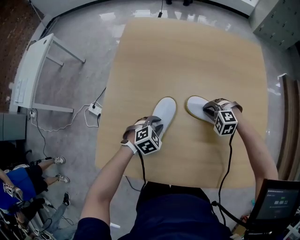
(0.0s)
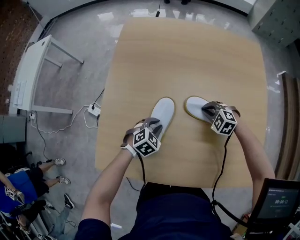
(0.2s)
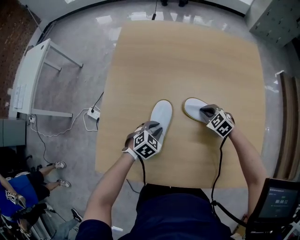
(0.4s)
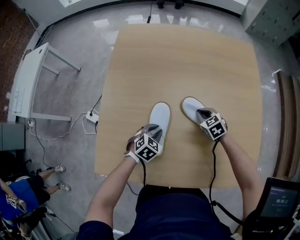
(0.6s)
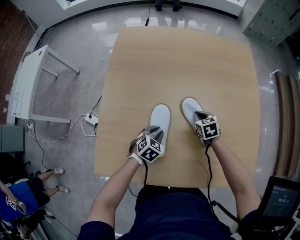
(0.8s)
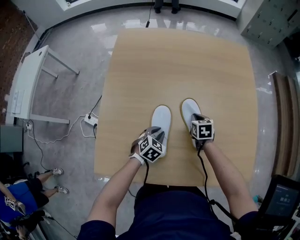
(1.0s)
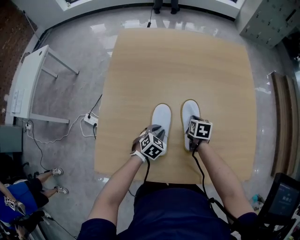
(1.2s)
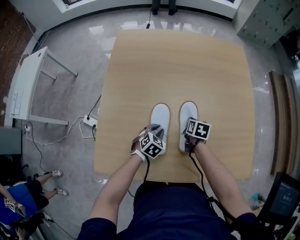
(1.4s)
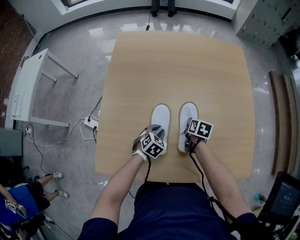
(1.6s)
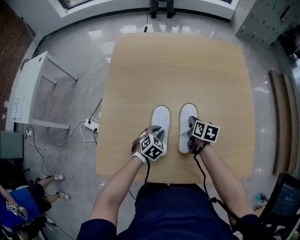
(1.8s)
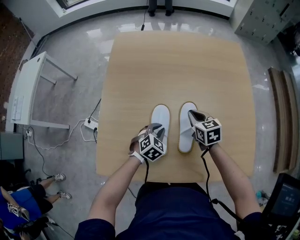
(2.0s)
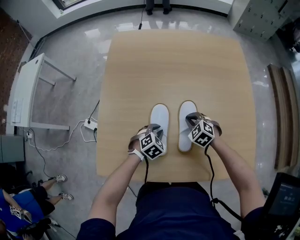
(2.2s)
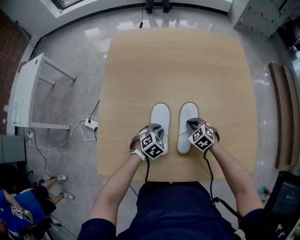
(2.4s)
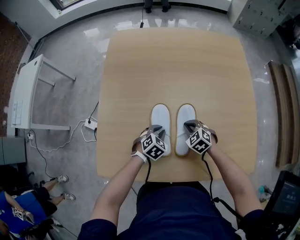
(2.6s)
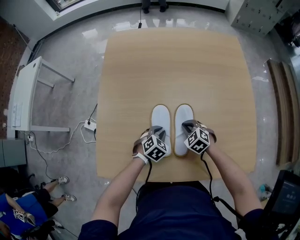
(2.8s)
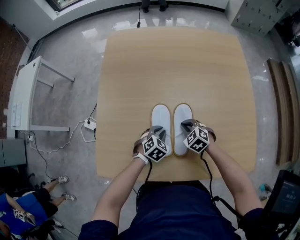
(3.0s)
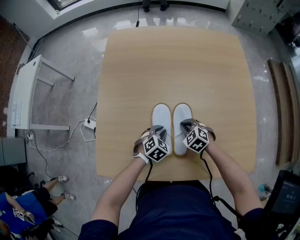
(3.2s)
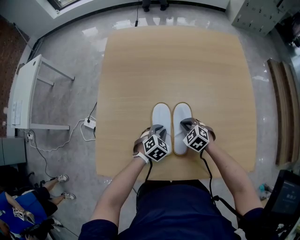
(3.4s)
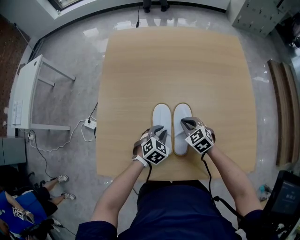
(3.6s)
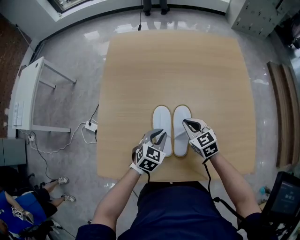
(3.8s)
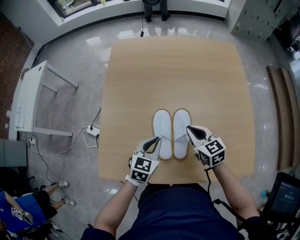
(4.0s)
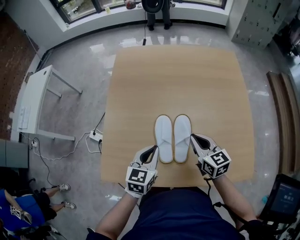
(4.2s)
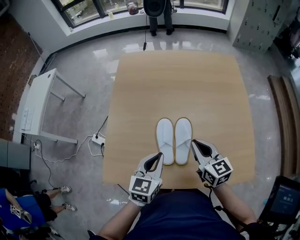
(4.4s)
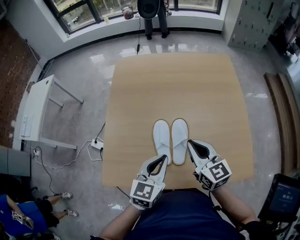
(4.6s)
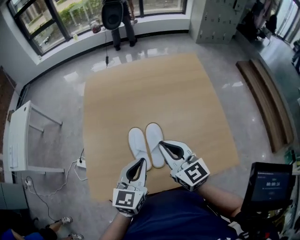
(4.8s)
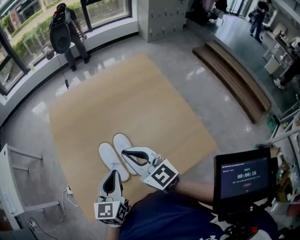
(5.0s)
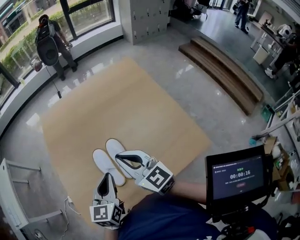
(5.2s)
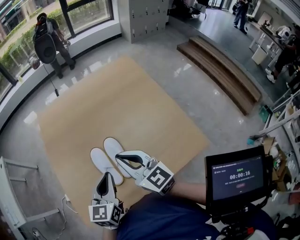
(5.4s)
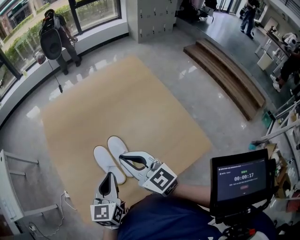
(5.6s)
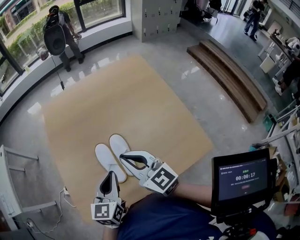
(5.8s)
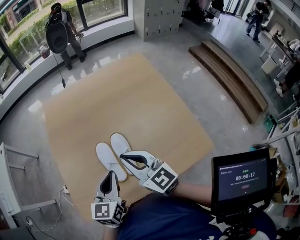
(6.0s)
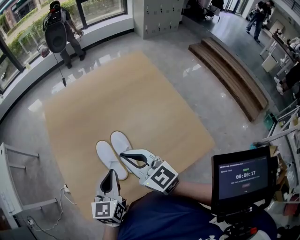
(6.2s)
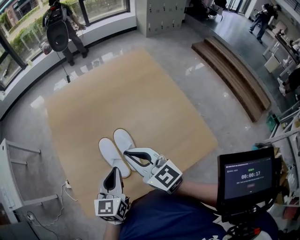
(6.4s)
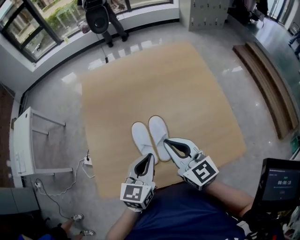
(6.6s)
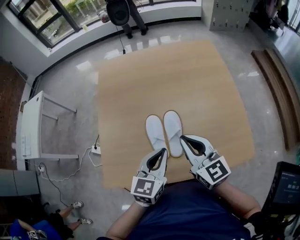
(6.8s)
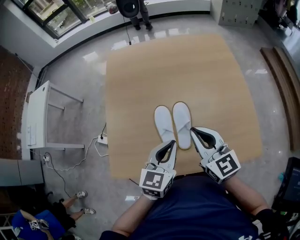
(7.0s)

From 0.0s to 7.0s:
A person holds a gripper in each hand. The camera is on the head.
From 0.0s to 1.4s: The right gripper rotates around the line of its fingers by roughly 110 degrees, clockwise from behind.
From 1.4s to 2.8s: The right gripper moves to the left, roughly 5 cm, travels upward and back again, some 10 cm each way, and rolls counterclockwise, seen from behind, by approximately 70 degrees.
From 2.8s to 4.2s: Both grippers move upward, some 20 cm. The left gripper changes its angle by some 40 degrees. Meanwhile the right gripper tips its fingers upward by about 30 degrees.
From 4.2s to 5.6s: The right gripper moves upward, roughly 15 cm. The left gripper goes approximately 10 cm upward and to the right.
From 5.6s to 7.0s: The grippers make only small movements.

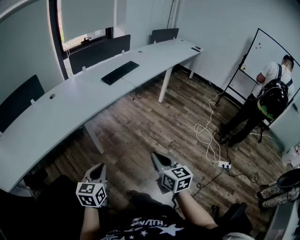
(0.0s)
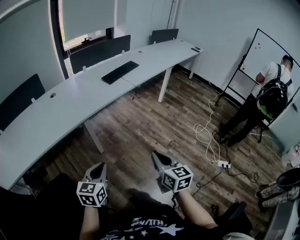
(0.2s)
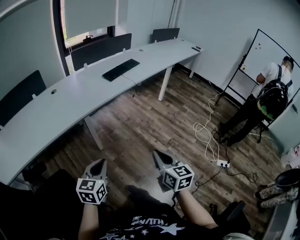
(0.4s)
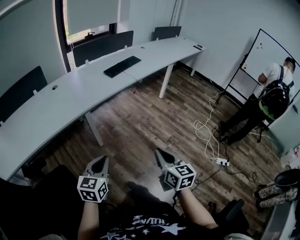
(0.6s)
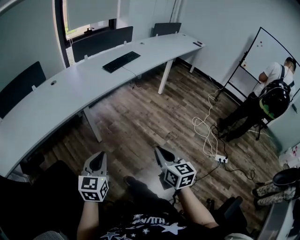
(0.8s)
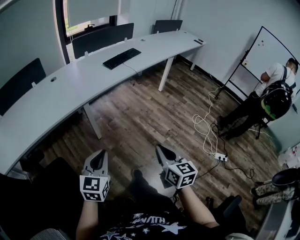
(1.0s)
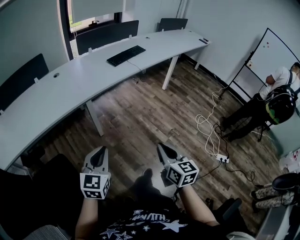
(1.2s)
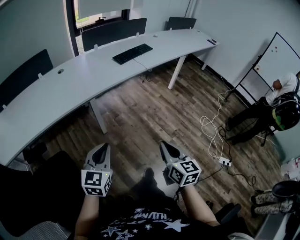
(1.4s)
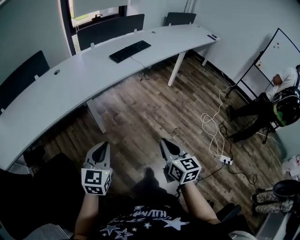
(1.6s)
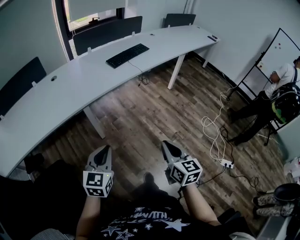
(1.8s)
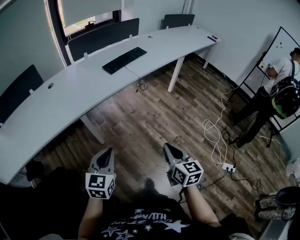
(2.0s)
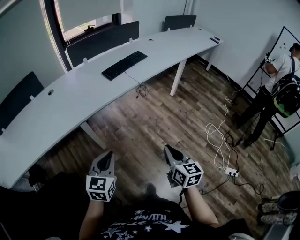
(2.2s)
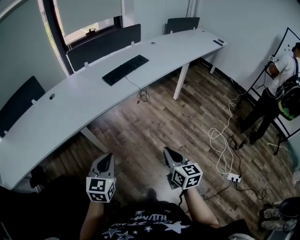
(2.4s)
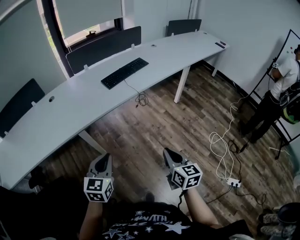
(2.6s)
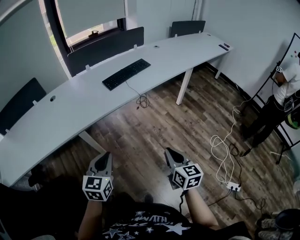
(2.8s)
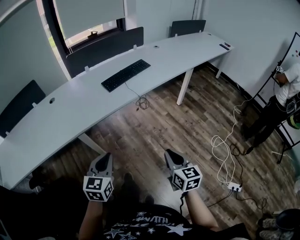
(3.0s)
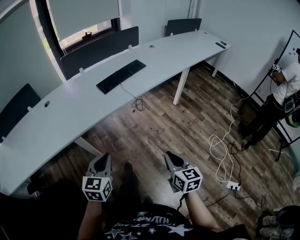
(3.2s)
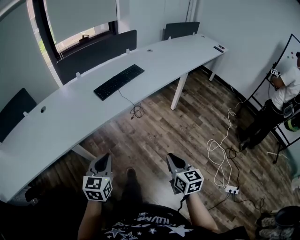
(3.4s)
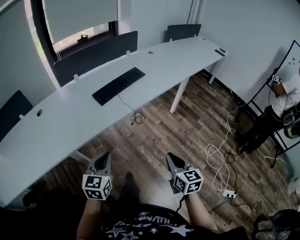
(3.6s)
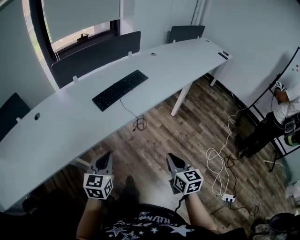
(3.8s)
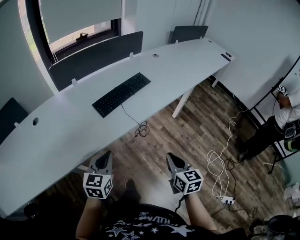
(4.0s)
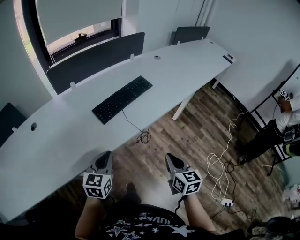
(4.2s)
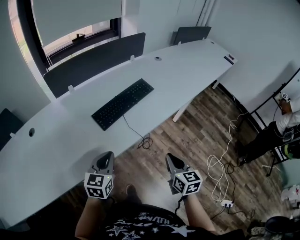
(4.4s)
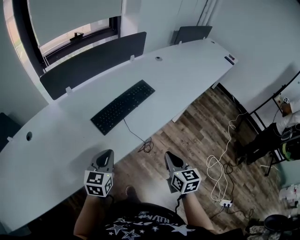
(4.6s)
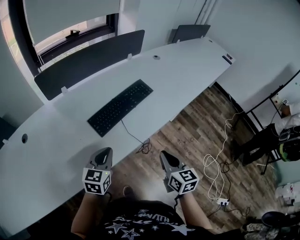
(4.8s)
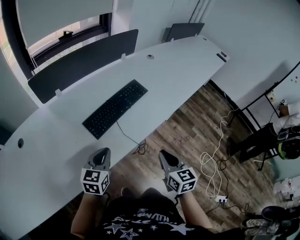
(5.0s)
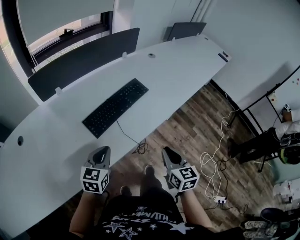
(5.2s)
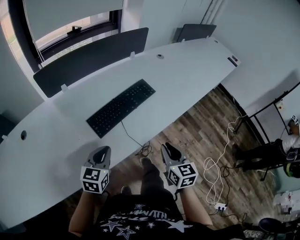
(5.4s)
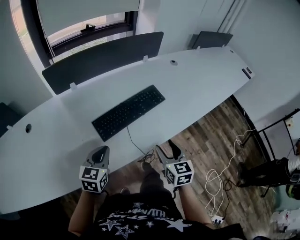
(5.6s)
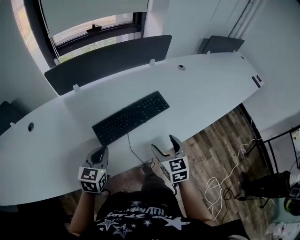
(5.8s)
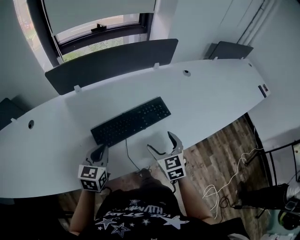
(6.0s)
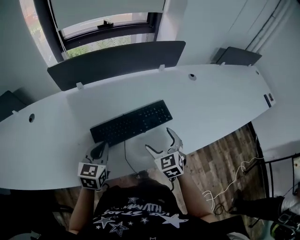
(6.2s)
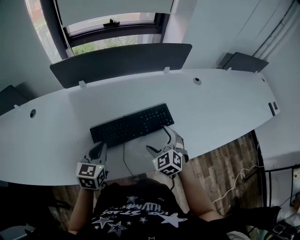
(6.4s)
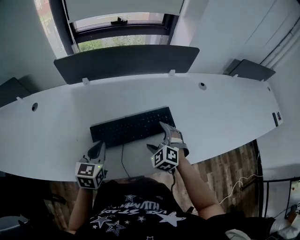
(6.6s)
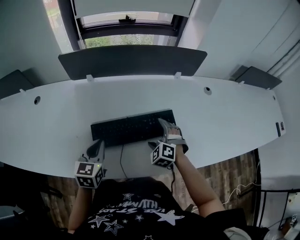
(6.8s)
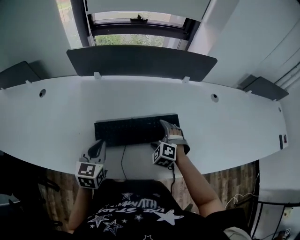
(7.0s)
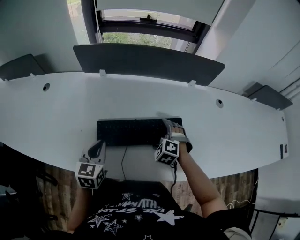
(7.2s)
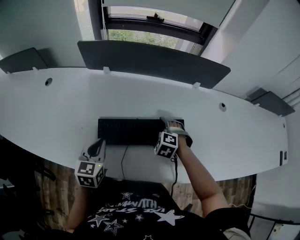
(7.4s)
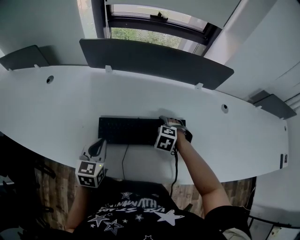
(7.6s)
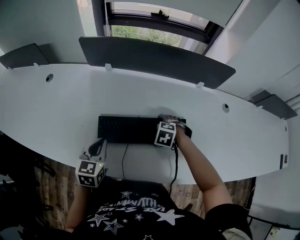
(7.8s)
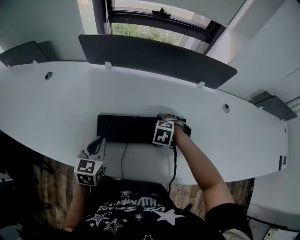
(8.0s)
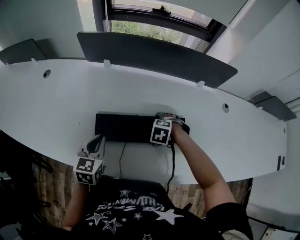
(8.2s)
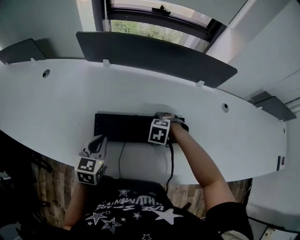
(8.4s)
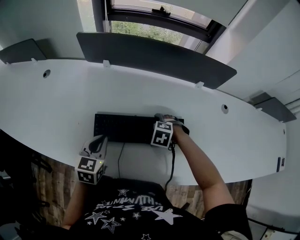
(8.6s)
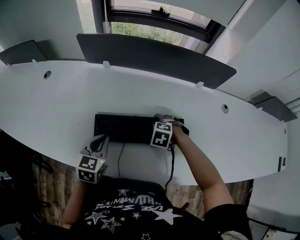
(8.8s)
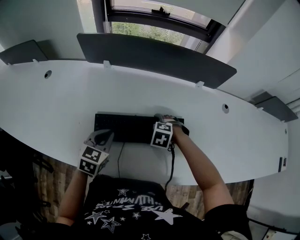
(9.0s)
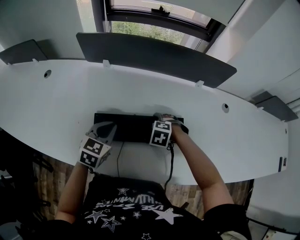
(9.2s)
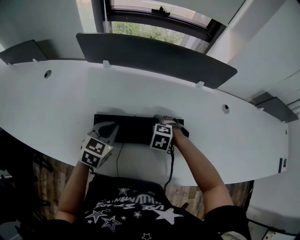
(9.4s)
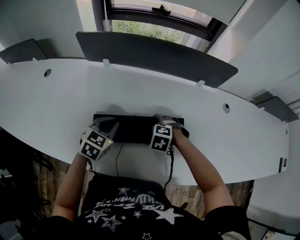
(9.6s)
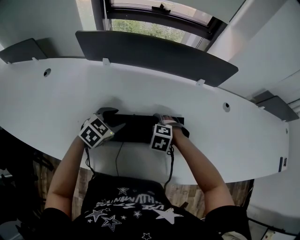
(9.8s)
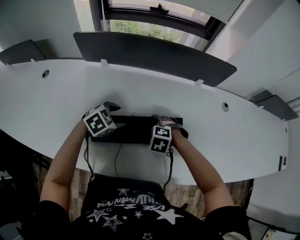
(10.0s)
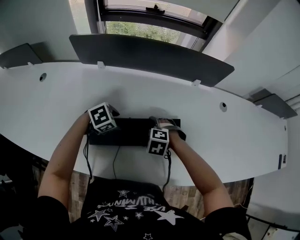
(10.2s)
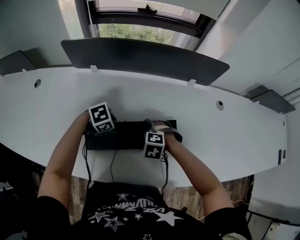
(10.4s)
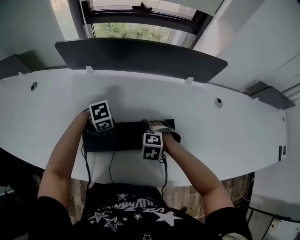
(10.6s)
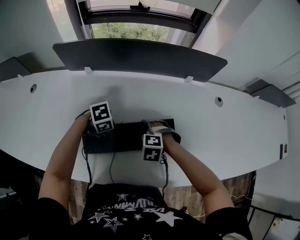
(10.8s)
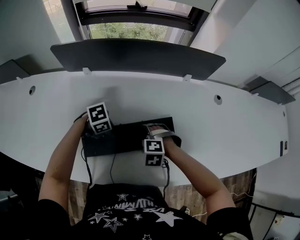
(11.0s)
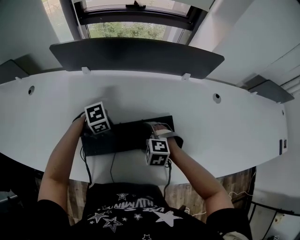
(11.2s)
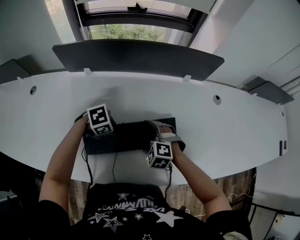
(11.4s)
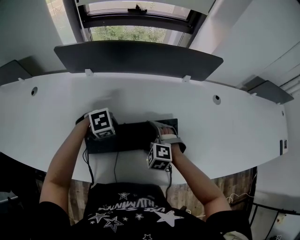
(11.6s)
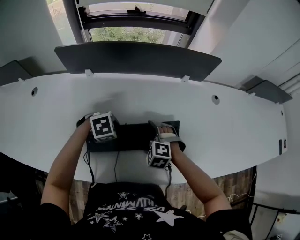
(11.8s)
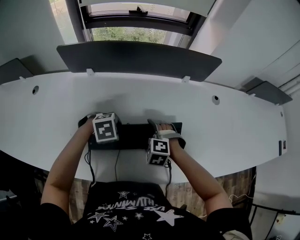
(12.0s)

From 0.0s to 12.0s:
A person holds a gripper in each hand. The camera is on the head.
From 0.0s to 1.6s: The right gripper moves roughly 5 cm backward and comes back.
From 1.6s to 3.0s: The two grippers go some 25 cm forward and to the right.
From 3.0s to 4.4s: Both grippers move forward, about 30 cm.
From 4.4s to 6.0s: The left gripper travels forward by some 20 cm, while the right gripper travels forward by some 30 cm, changes its angle by roughly 40 degrees, and opens up.
From 6.0s to 7.6s: The right gripper changes place by approximately 20 cm, and points its fingers approximately 50 degrees further downward. The left gripper changes its angle by roughly 30 degrees.
From 7.6s to 9.0s: The left gripper changes place by approximately 5 cm.
From 9.0s to 10.4s: The left gripper travels downward by approximately 10 cm, changes its angle by approximately 60 degrees, and opens its fingers.
From 10.4s to 12.0s: The left gripper travels upward by approximately 5 cm, and changes its angle by roughly 20 degrees.

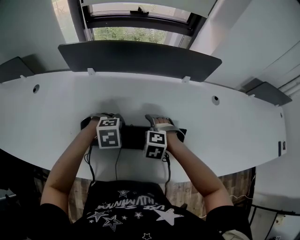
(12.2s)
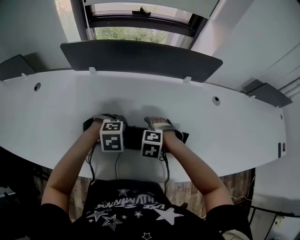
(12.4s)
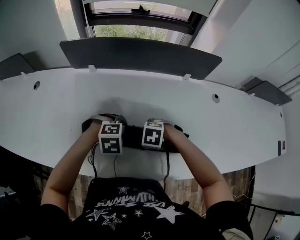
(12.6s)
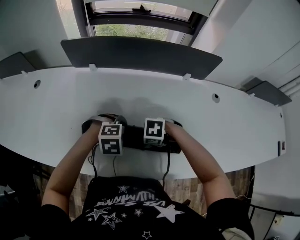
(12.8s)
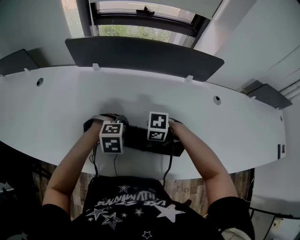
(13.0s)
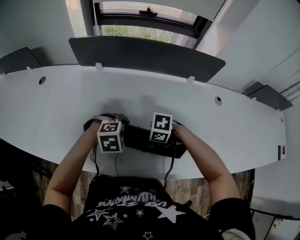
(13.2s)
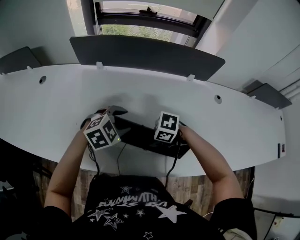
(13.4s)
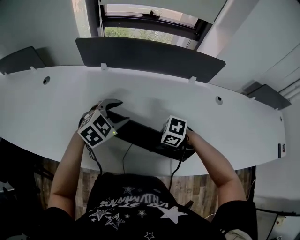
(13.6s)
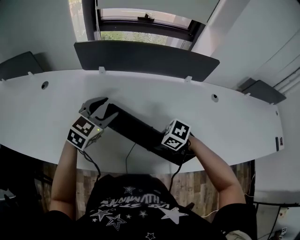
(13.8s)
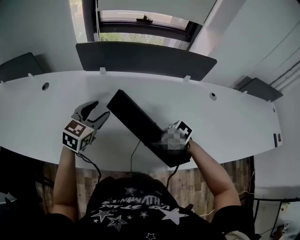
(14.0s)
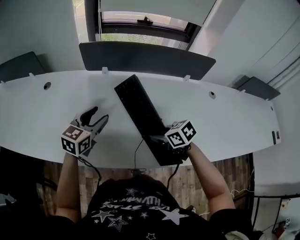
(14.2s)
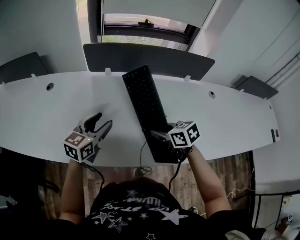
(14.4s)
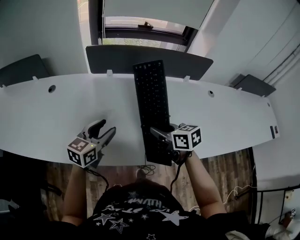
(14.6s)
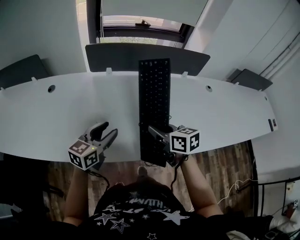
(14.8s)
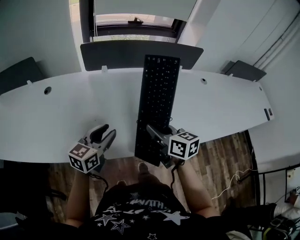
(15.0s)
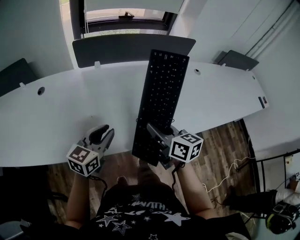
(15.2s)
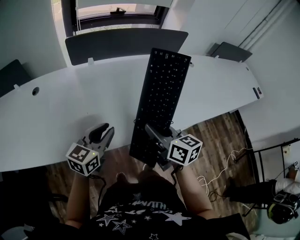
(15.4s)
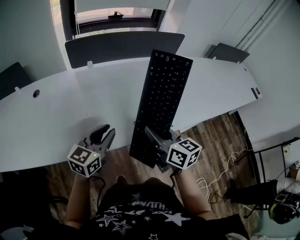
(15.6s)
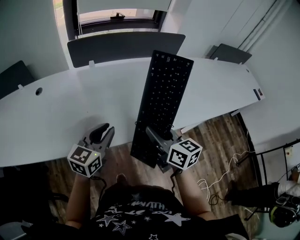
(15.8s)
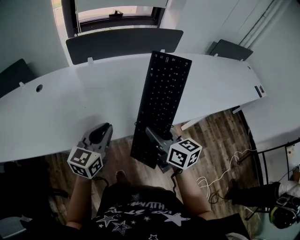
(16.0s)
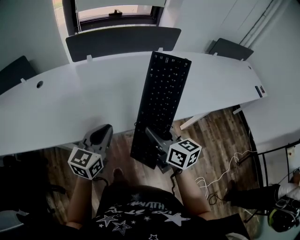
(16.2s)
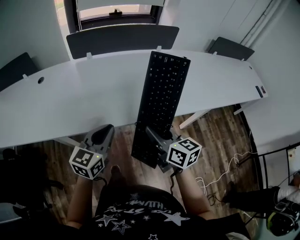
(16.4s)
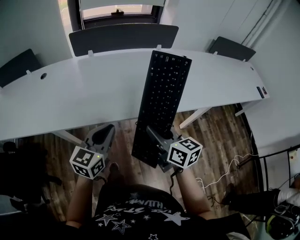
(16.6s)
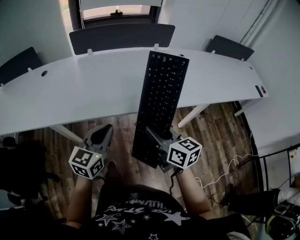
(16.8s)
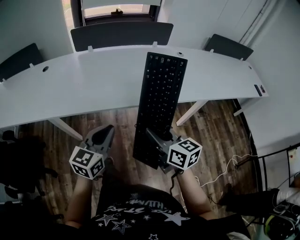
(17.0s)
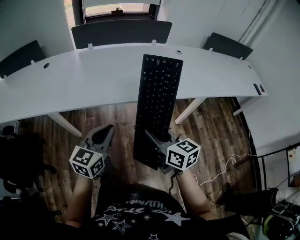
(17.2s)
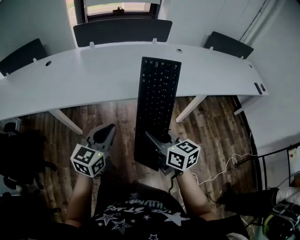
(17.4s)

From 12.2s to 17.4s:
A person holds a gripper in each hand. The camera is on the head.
From 12.2s to 14.0s: The left gripper ends up about 20 cm from where it was, and tilts its fingers roughly 50 degrees upward; the right gripper moves some 10 cm, rotates around the line of its fingers by about 40 degrees, clockwise from behind, and closes.
From 14.0s to 15.6s: The left gripper moves about 25 cm, changes its angle by roughly 20 degrees, and closes its fingers. Meanwhile the right gripper ends up approximately 25 cm from where it was, and angles its fingers upward, by about 40 degrees.
From 15.6s to 17.4s: Both grippers move backward and to the right, approximately 20 cm.
